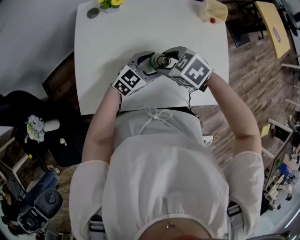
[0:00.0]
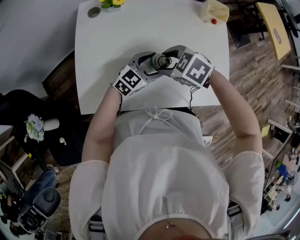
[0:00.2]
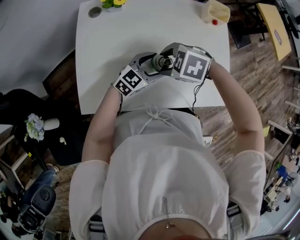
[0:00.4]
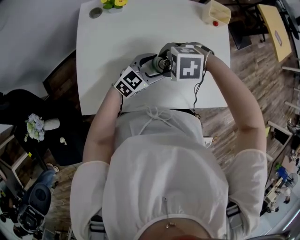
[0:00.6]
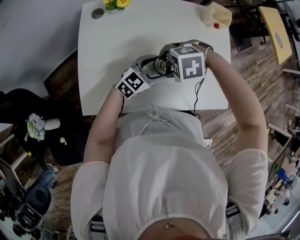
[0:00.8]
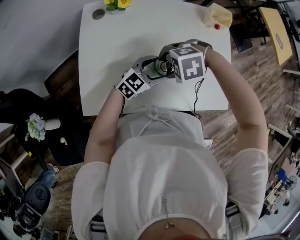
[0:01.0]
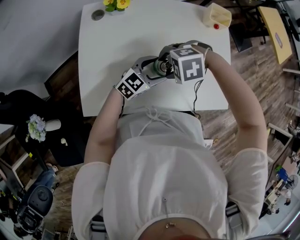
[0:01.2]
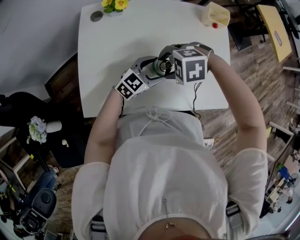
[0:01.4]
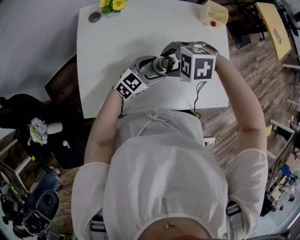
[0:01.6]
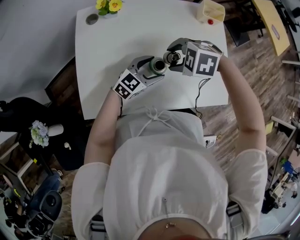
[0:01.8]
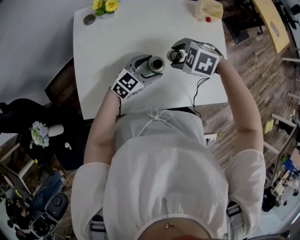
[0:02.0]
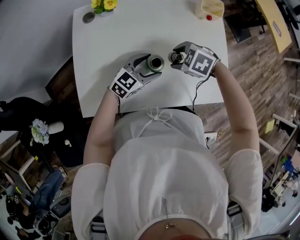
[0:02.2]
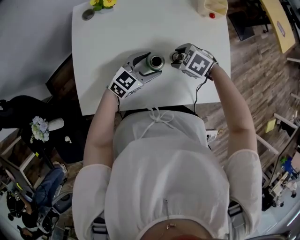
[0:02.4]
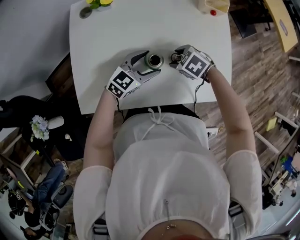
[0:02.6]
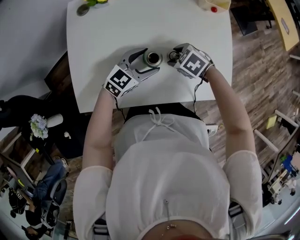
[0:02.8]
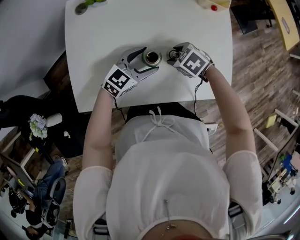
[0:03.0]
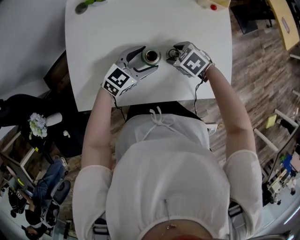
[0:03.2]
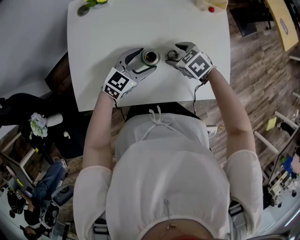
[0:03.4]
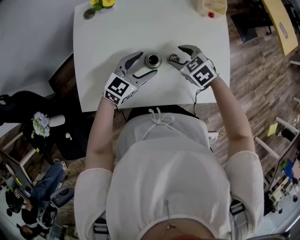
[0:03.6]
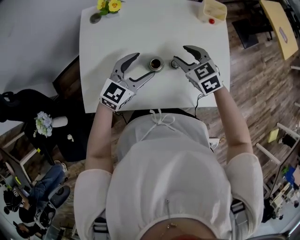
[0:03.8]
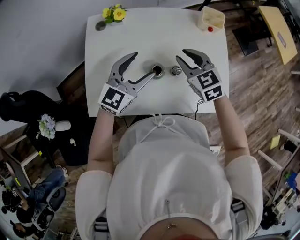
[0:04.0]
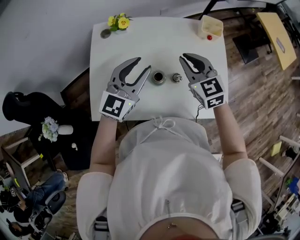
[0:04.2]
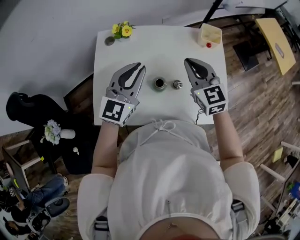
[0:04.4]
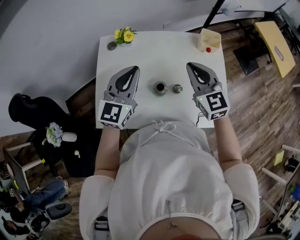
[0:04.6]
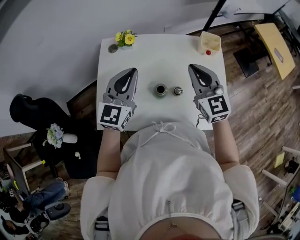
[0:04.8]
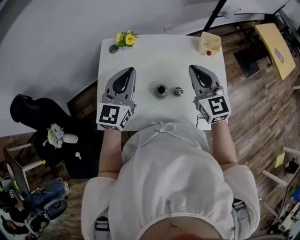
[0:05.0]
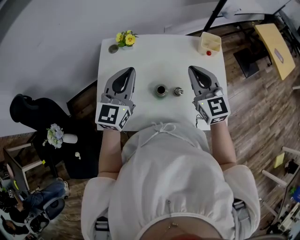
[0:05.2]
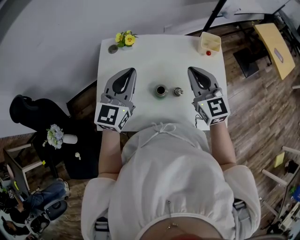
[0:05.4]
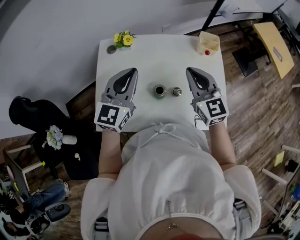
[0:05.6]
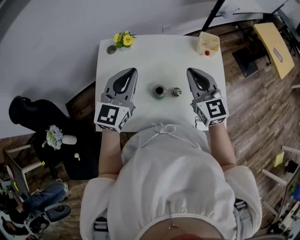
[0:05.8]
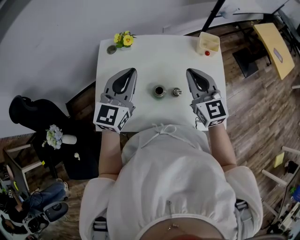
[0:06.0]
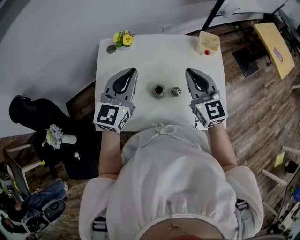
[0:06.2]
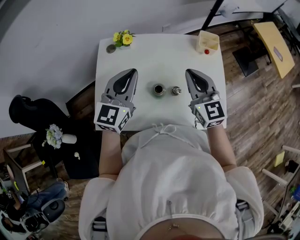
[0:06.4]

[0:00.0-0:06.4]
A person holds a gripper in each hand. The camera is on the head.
0:00.0 to 0:01.6: The right gripper changes its angle by approximately 40 degrees.
0:01.6 to 0:03.2: The right gripper goes roughly 15 cm downward, and twists roughly 40 degrees clockwise, seen from behind.
0:03.2 to 0:04.8: Both grippers travel together upward, approximately 30 cm. The left gripper swivels roughly 40 degrees, and closes up, while the right gripper points its fingers some 60 degrees further upward, and closes.
0:04.8 to 0:06.4: The grippers stay close to where they were, moving slightly.

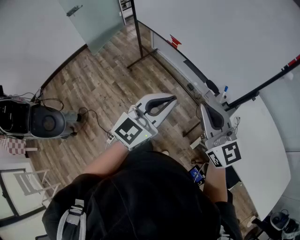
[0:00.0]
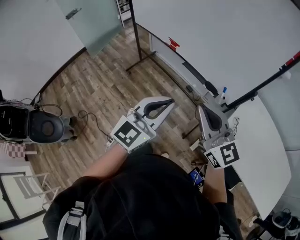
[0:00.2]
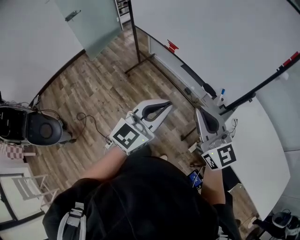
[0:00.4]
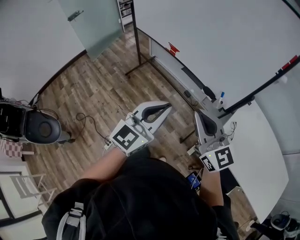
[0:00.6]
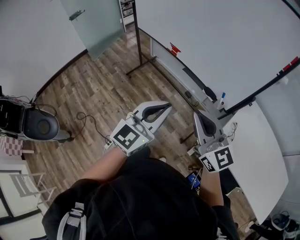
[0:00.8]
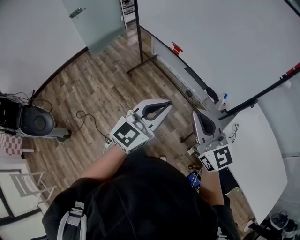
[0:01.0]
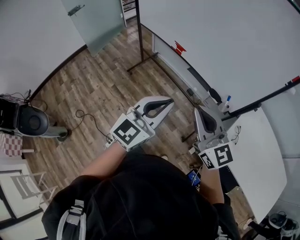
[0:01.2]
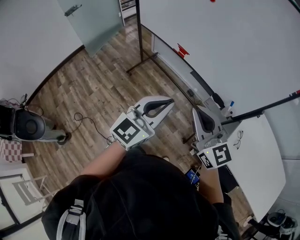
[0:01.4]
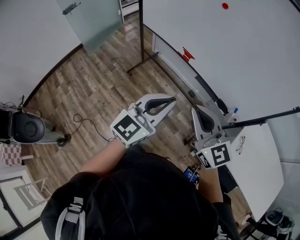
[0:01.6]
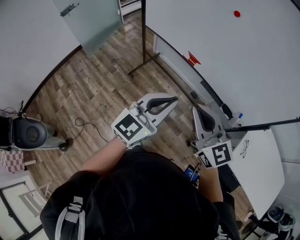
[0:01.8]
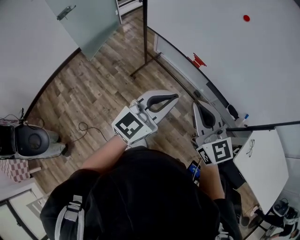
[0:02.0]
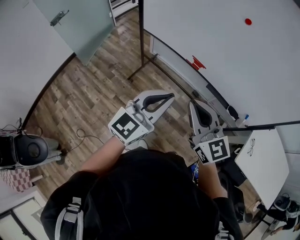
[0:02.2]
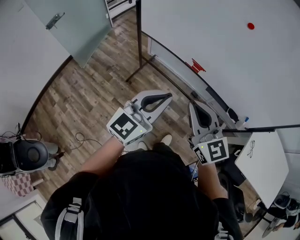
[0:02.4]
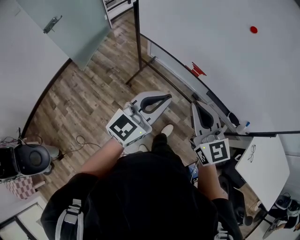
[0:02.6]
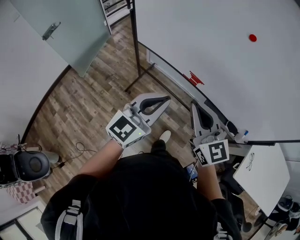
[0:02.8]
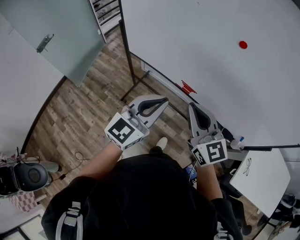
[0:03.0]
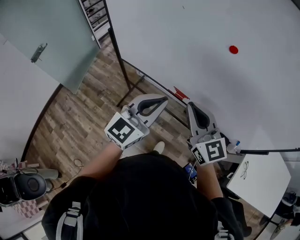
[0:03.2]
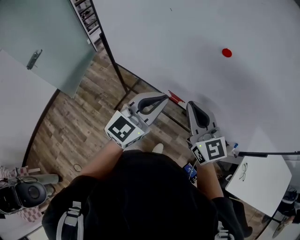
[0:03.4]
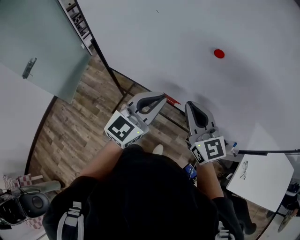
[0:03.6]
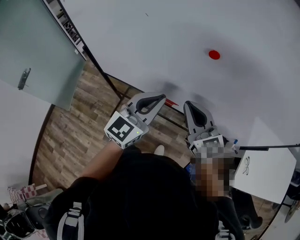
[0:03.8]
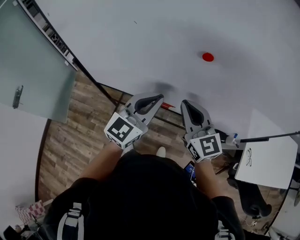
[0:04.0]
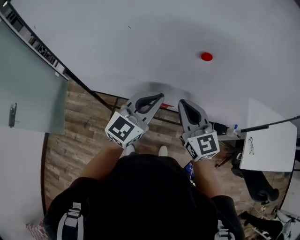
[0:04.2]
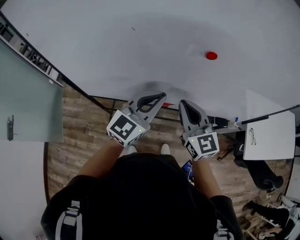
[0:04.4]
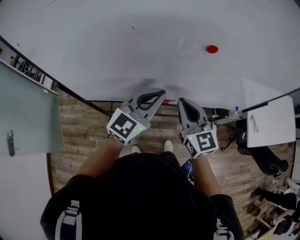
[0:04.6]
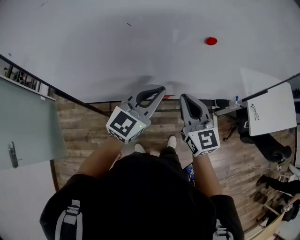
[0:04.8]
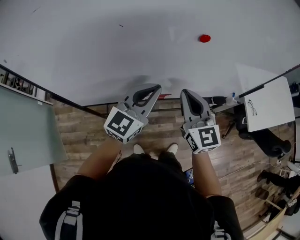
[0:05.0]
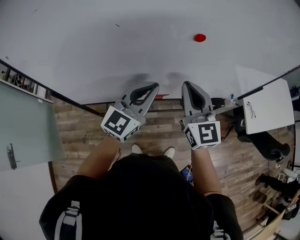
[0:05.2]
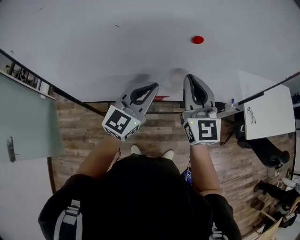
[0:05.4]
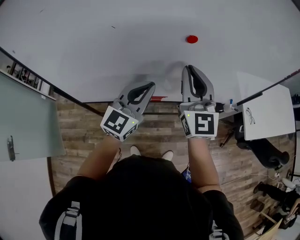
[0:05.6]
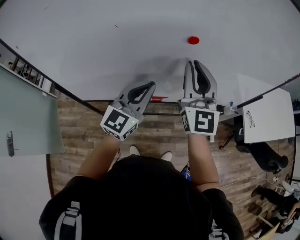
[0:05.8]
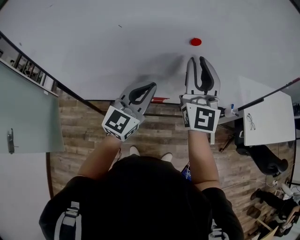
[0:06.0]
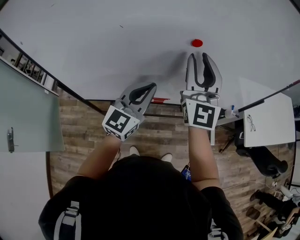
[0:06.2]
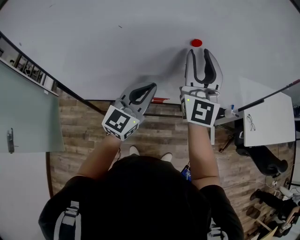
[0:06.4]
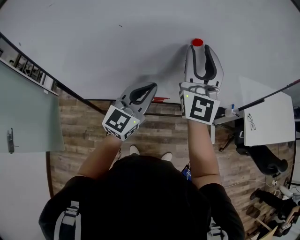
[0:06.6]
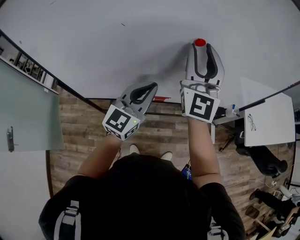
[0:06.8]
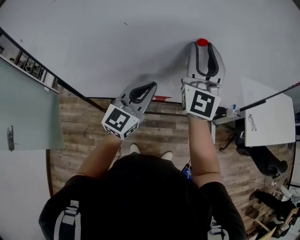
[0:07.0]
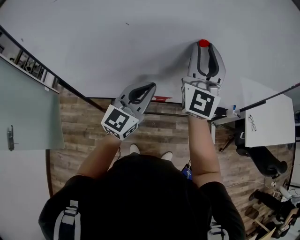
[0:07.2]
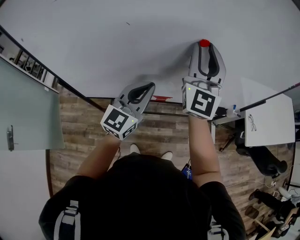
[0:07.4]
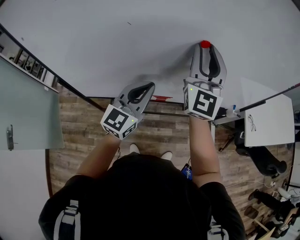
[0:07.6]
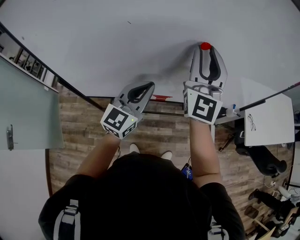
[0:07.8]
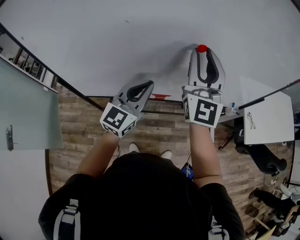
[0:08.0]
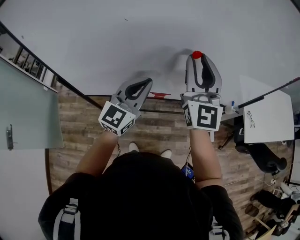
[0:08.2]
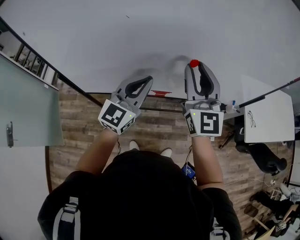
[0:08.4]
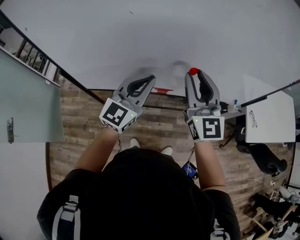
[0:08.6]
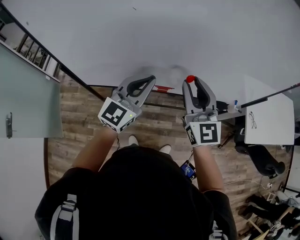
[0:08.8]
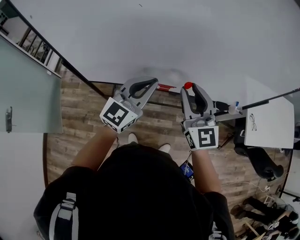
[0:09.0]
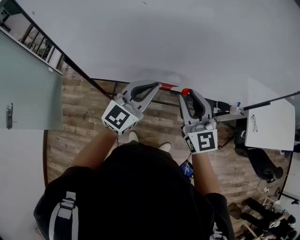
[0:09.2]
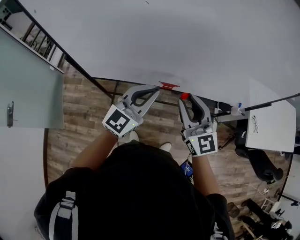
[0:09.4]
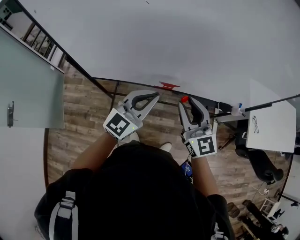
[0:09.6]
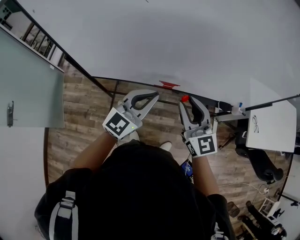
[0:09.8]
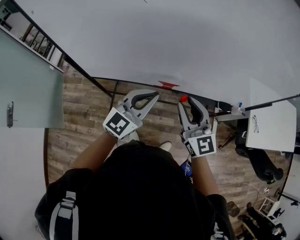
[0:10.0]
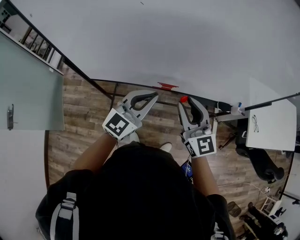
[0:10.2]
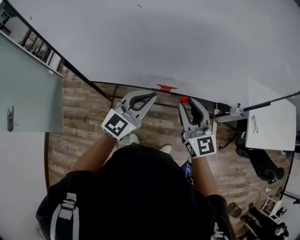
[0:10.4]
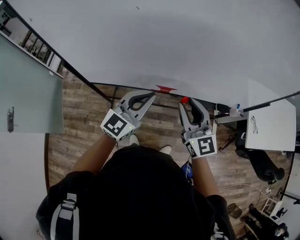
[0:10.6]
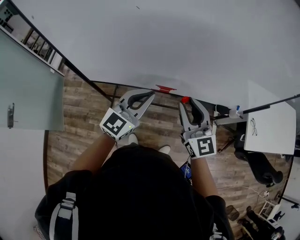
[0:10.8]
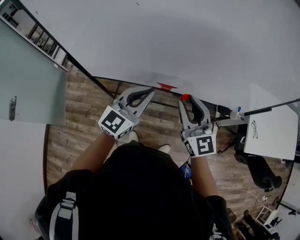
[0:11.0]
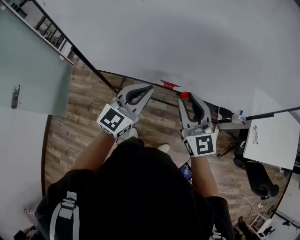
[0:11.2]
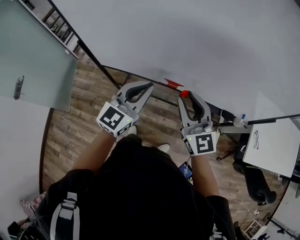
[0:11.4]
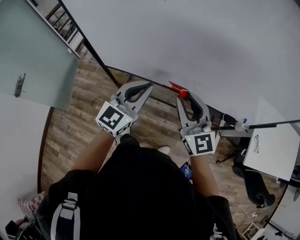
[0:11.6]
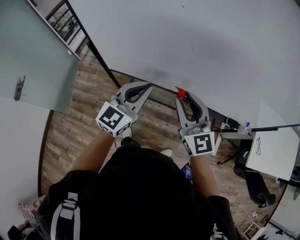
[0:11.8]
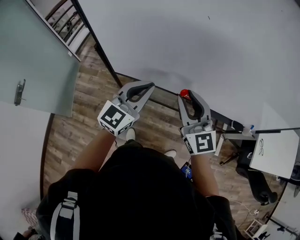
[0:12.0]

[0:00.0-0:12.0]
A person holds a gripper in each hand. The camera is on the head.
0:00.0 to 0:01.6: The grippers both shift to the left and forward by about 20 cm.
0:01.6 to 0:03.0: The two grippers go roughly 30 cm forward and to the left.
0:03.0 to 0:04.4: The left gripper ends up some 20 cm from where it was, and swivels approximately 30 degrees. Meanwhile the right gripper ends up some 15 cm from where it was, and swivels roughly 30 degrees.
0:04.4 to 0:06.0: The right gripper is displaced upward by some 15 cm, changes its angle by about 40 degrees, and opens its fingers.
0:06.0 to 0:07.6: The grippers make only small movements.
0:07.6 to 0:09.0: The right gripper heads downward and backward, covering about 20 cm, and swivels roughly 30 degrees.
0:09.0 to 0:10.4: The right gripper heads downward, covering approximately 5 cm.
0:10.4 to 0:12.0: The grippers both shift to the left by approximately 15 cm.

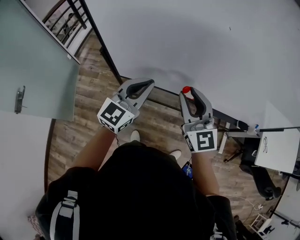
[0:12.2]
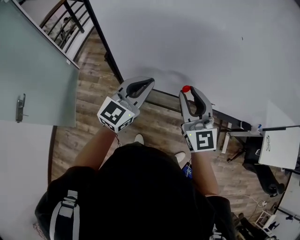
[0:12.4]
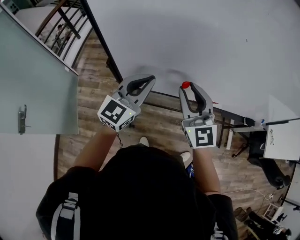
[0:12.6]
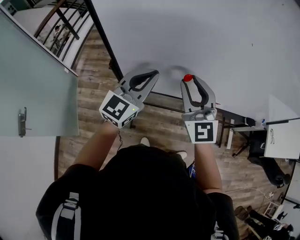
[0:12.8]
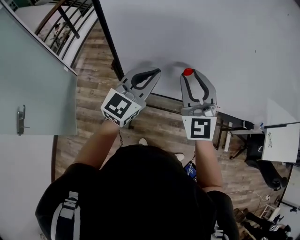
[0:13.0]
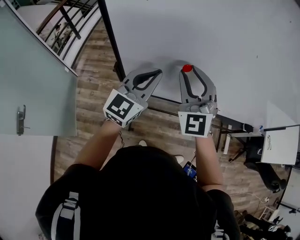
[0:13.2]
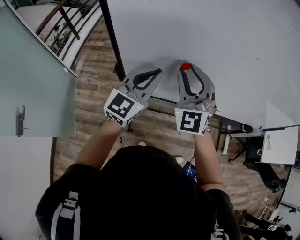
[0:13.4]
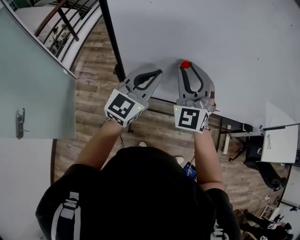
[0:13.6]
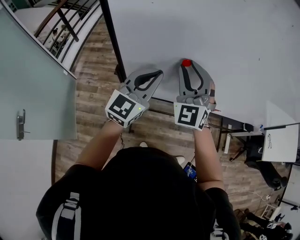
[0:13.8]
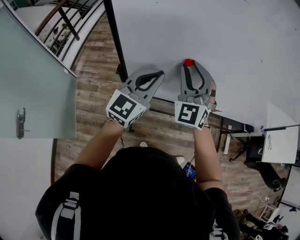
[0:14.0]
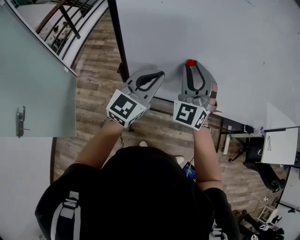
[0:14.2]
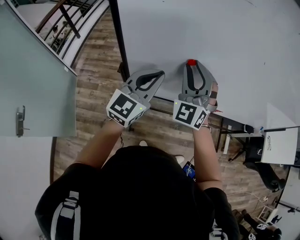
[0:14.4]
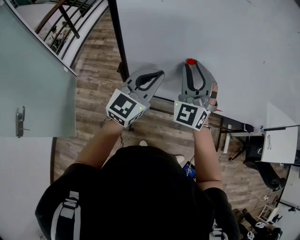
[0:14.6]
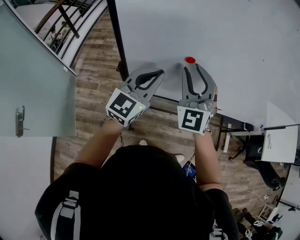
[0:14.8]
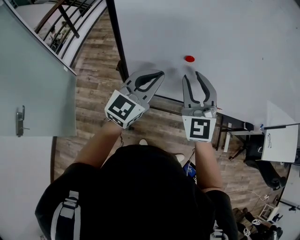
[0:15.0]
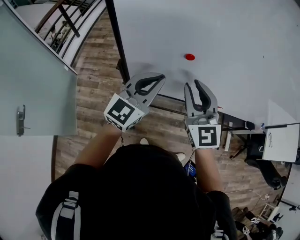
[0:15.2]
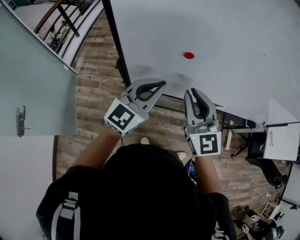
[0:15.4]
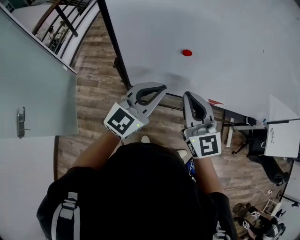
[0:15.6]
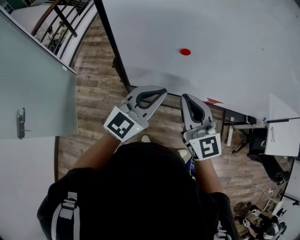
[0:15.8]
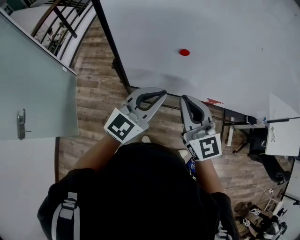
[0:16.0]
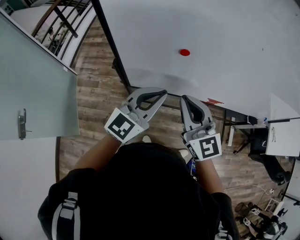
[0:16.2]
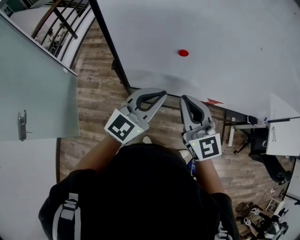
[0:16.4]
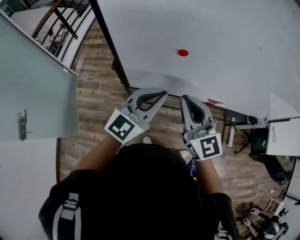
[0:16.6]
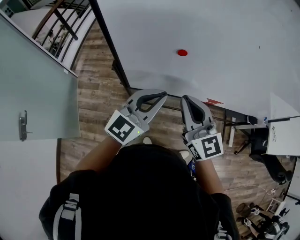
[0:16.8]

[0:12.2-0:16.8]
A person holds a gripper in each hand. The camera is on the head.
0:12.2 to 0:13.8: Both grippers move to the left and forward, some 15 cm. The right gripper rotates about 40 degrees.
0:13.8 to 0:15.2: The right gripper moves backward, roughly 5 cm, and turns by approximately 30 degrees.
0:15.2 to 0:16.8: The left gripper moves about 5 cm. The right gripper moves about 5 cm, and closes.

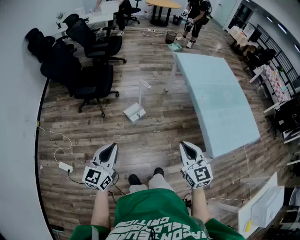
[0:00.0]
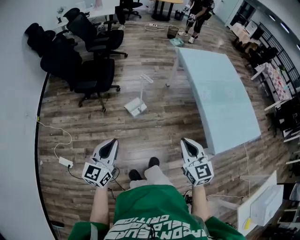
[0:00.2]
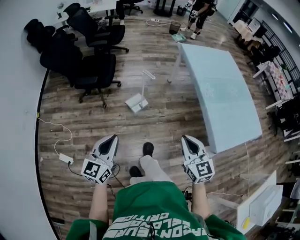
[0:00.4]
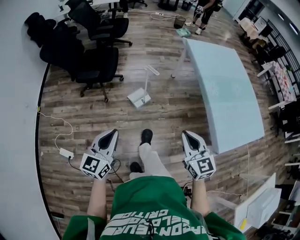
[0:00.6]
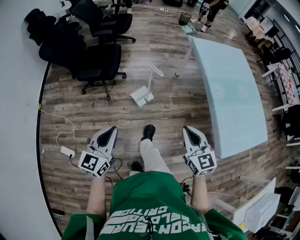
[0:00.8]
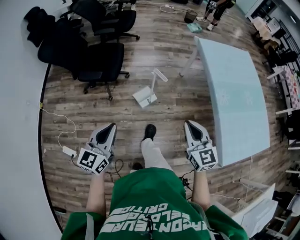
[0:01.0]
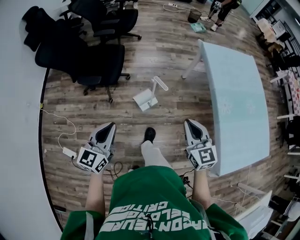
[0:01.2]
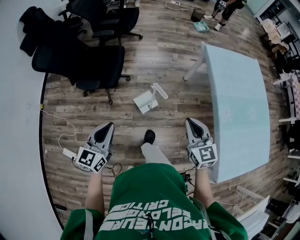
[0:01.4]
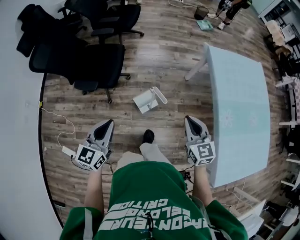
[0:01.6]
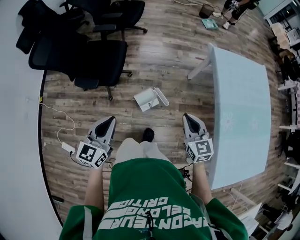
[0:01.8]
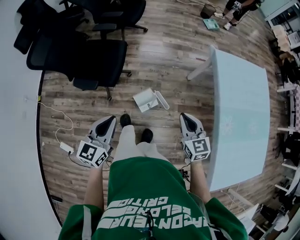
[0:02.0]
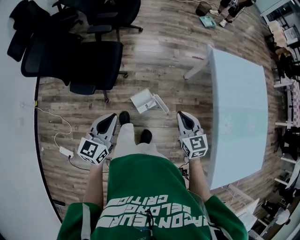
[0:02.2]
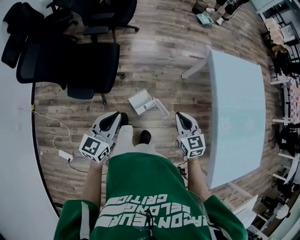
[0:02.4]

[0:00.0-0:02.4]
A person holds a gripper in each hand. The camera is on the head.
0:00.0 to 0:01.2: The two grippers go roughly 25 cm forward.
0:01.2 to 0:02.4: The left gripper goes about 25 cm forward, while the right gripper shifts about 25 cm forward and downward.
